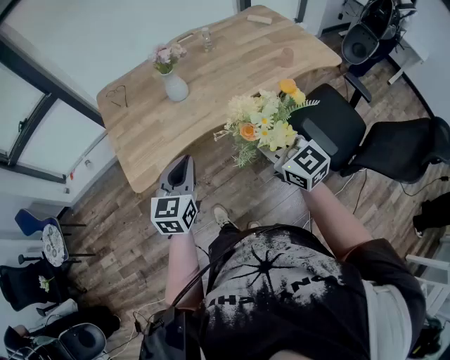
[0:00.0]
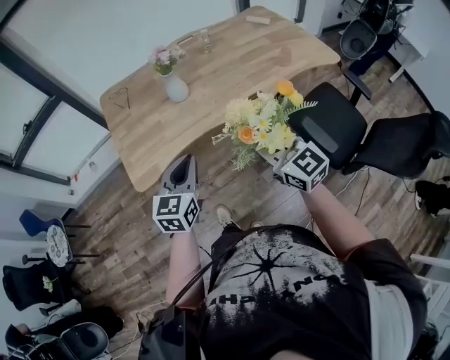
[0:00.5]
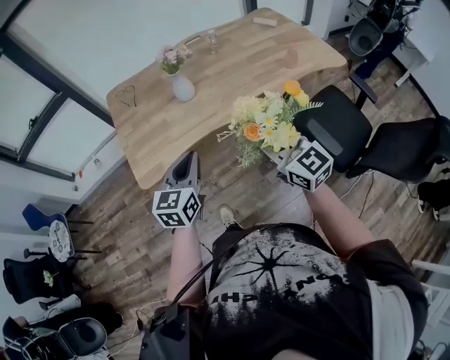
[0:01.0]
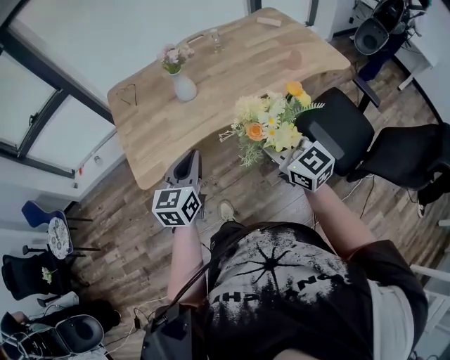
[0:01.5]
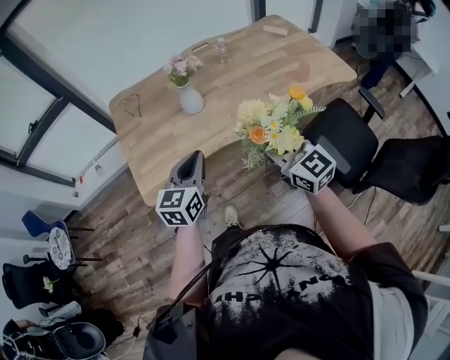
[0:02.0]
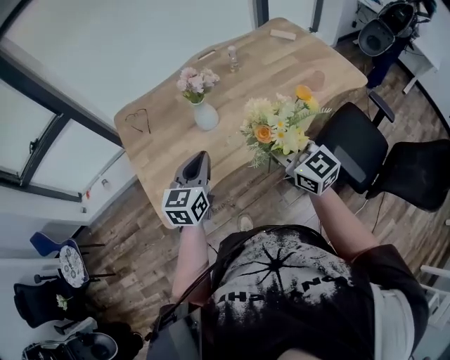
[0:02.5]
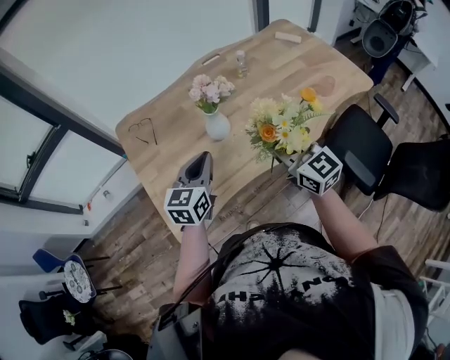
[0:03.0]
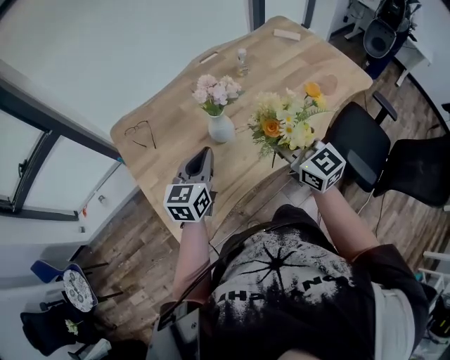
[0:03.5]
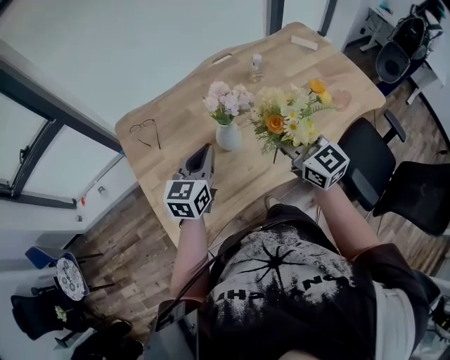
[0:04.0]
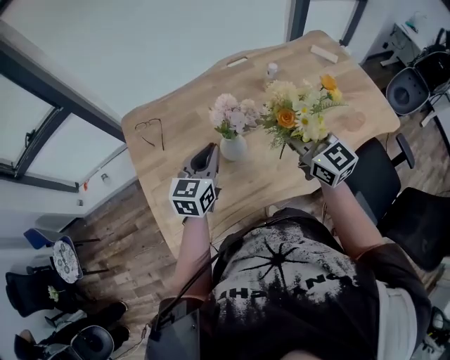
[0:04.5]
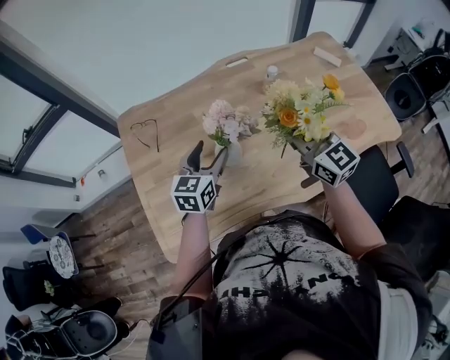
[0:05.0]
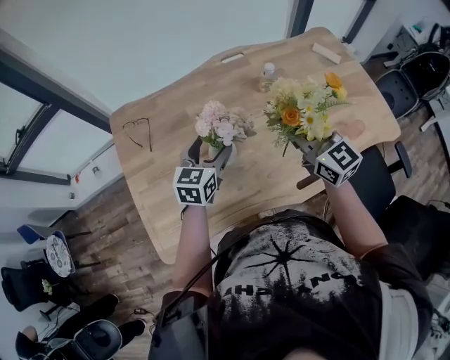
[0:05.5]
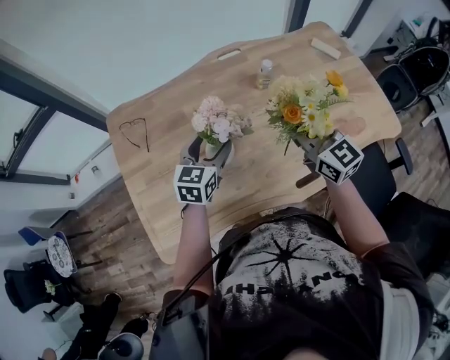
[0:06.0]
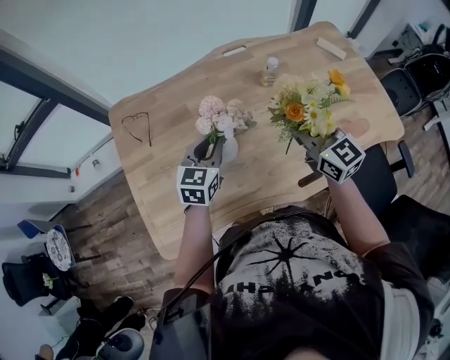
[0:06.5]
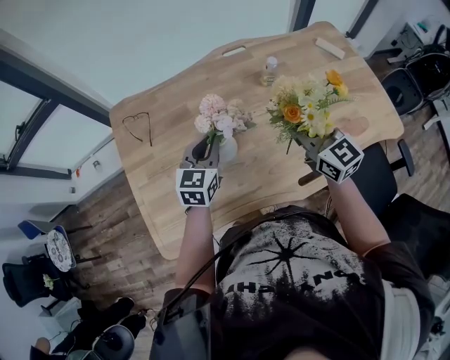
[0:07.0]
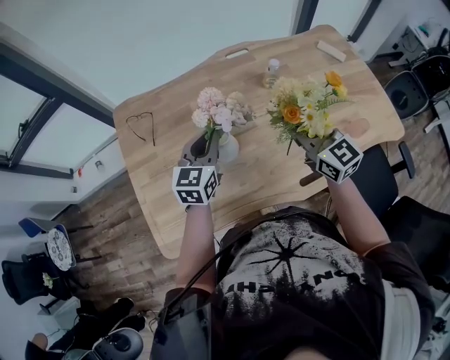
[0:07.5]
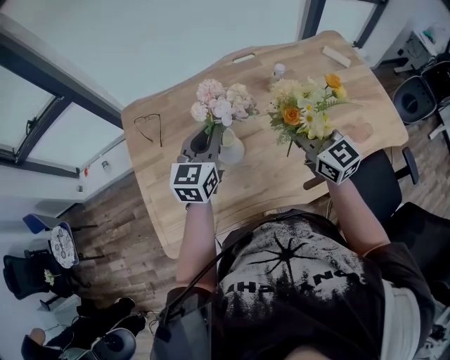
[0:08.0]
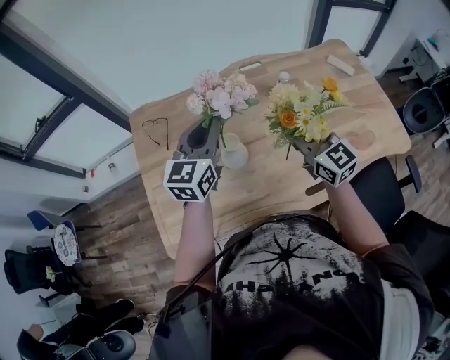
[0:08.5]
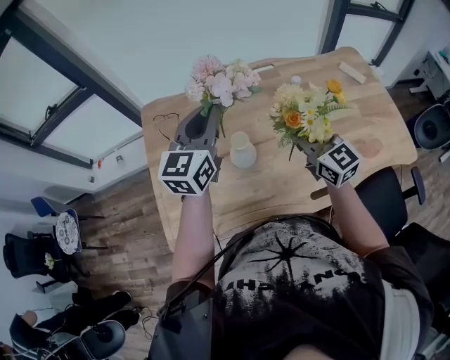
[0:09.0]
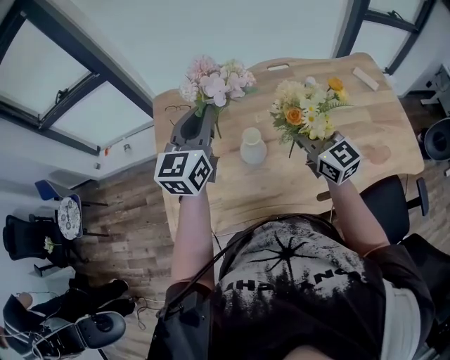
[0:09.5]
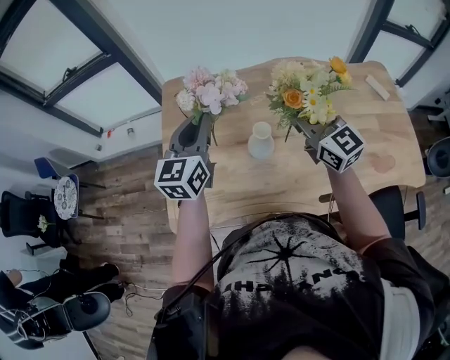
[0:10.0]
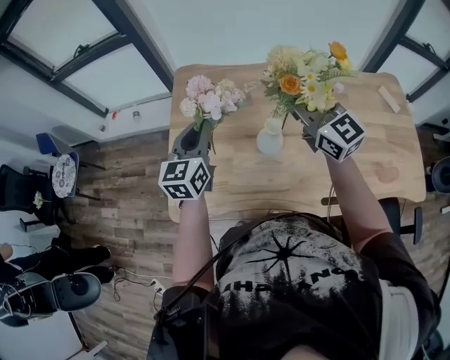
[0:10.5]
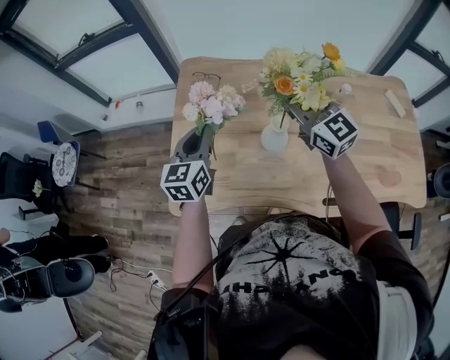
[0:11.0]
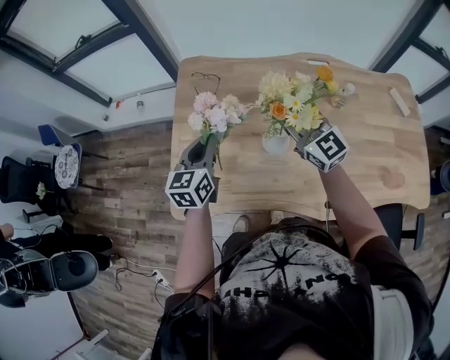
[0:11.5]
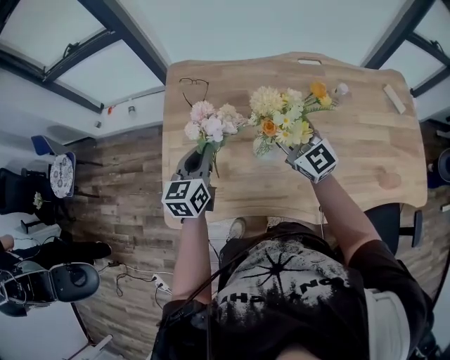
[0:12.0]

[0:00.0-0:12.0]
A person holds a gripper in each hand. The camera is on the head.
0:00.0 to 0:02.0: The two grippers go roughly 5 cm forward.
0:02.0 to 0:04.0: Both grippers move forward, roughly 25 cm.
0:04.0 to 0:06.0: The left gripper goes about 15 cm forward, to the right and downward, and opens; the right gripper goes some 15 cm forward and to the right.
0:06.0 to 0:08.0: The left gripper heads upward, covering approximately 10 cm, and closes.
0:08.0 to 0:10.0: The two grippers go about 15 cm to the left and upward.
0:10.0 to 0:12.0: The left gripper goes about 15 cm downward. Meanwhile the right gripper is displaced downward and to the left by some 10 cm.

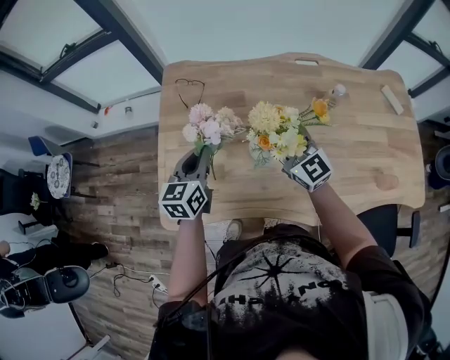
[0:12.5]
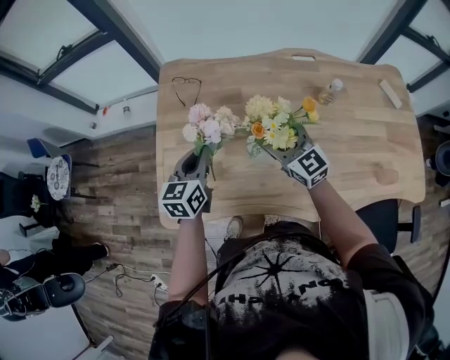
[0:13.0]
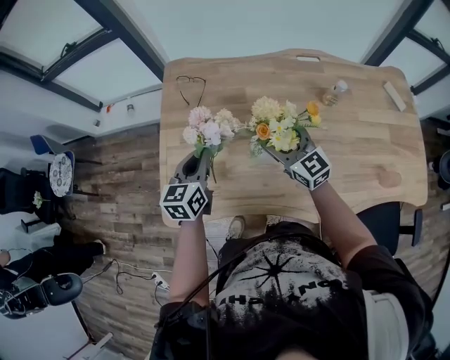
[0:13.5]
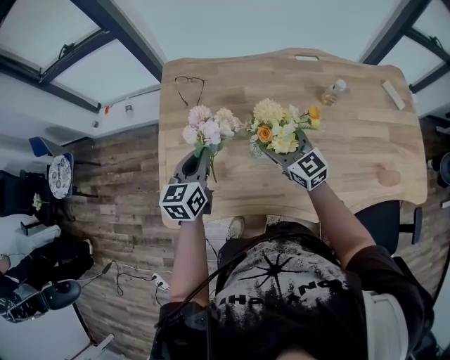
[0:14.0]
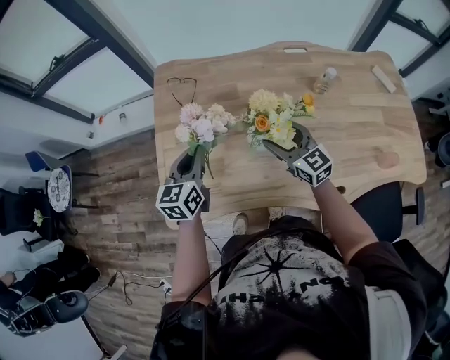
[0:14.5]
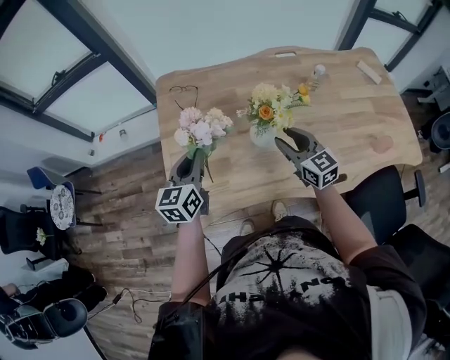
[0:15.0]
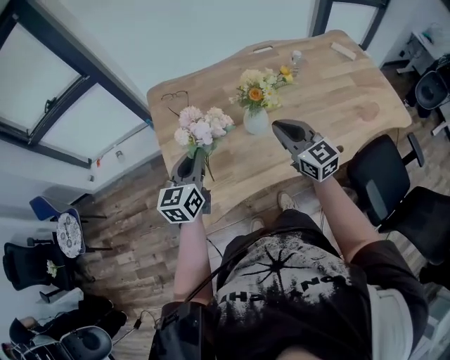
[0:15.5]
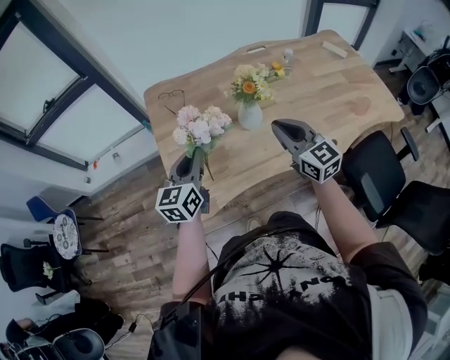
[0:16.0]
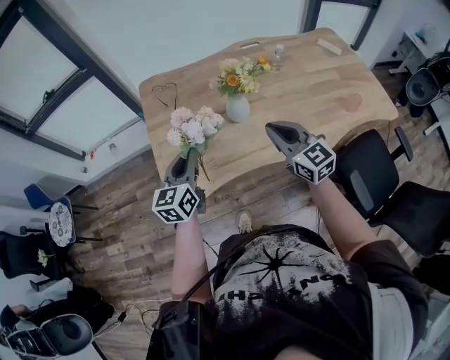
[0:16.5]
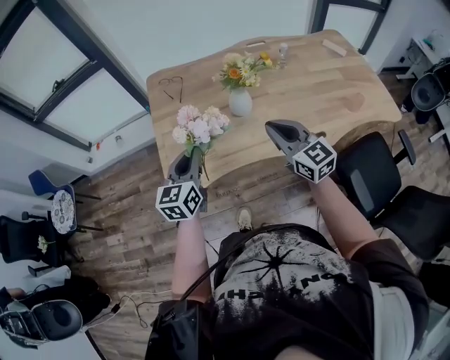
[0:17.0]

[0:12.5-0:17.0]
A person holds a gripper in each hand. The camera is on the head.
0:12.5 to 0:14.5: The right gripper heads downward, covering roughly 5 cm.
0:14.5 to 0:17.0: The right gripper heads backward and upward, covering about 25 cm, and closes up; the left gripper is displaced backward by some 20 cm.

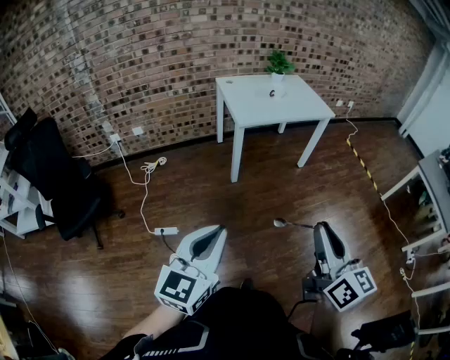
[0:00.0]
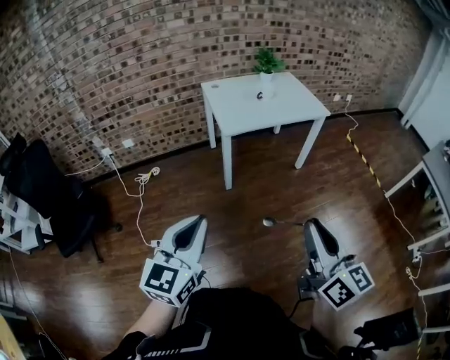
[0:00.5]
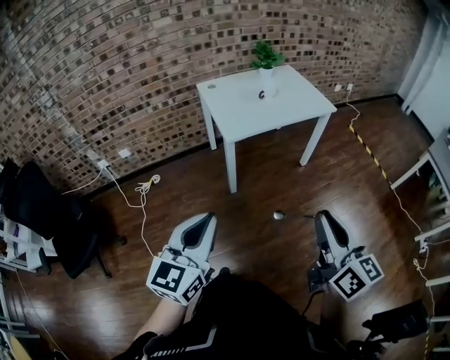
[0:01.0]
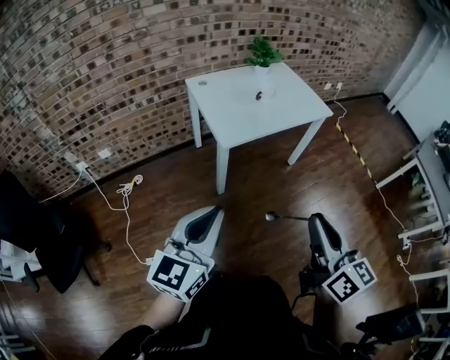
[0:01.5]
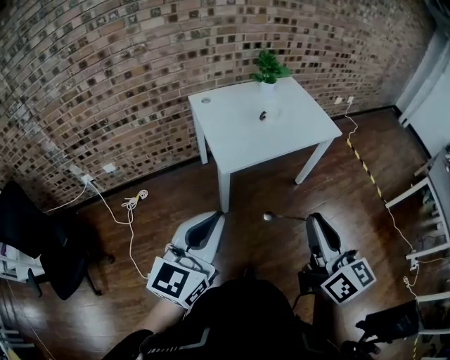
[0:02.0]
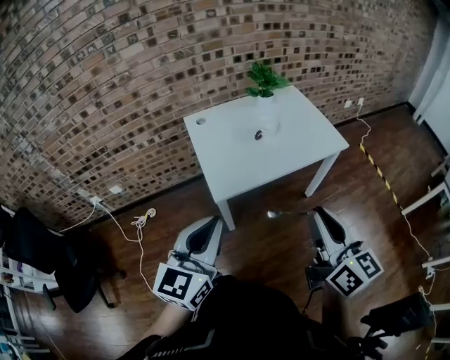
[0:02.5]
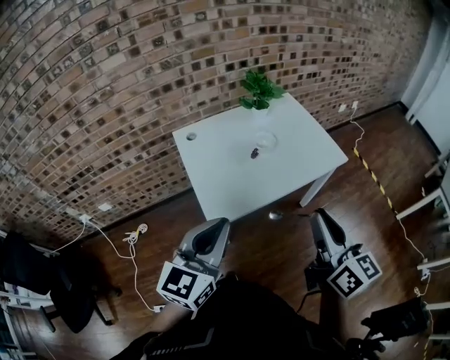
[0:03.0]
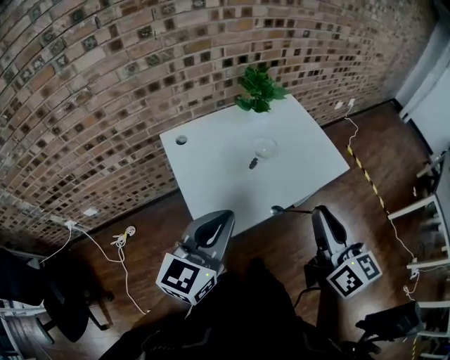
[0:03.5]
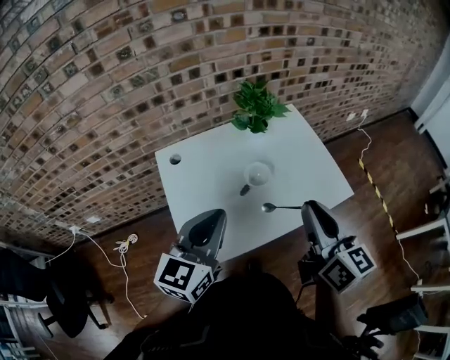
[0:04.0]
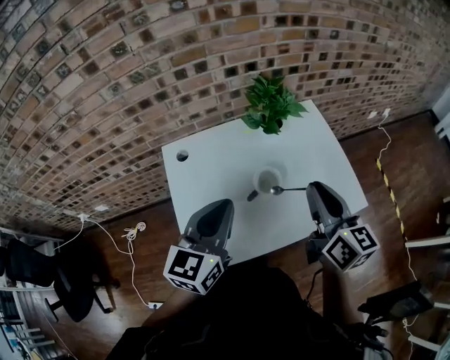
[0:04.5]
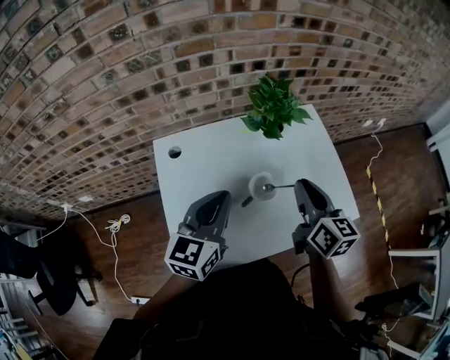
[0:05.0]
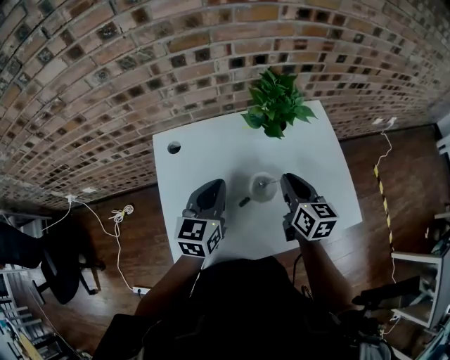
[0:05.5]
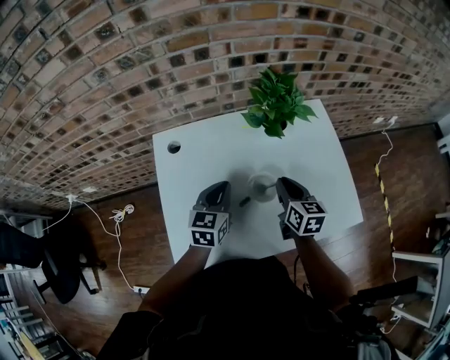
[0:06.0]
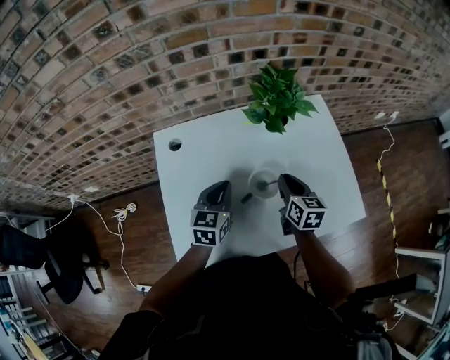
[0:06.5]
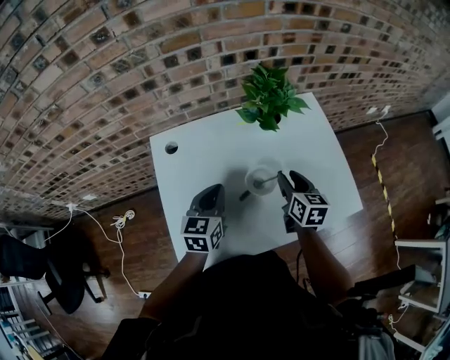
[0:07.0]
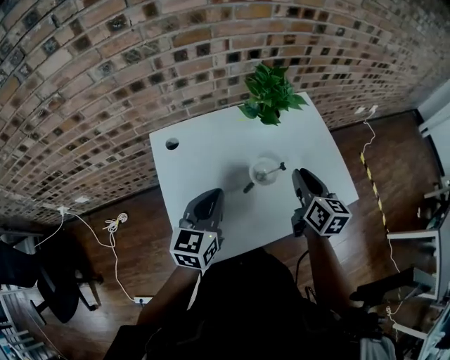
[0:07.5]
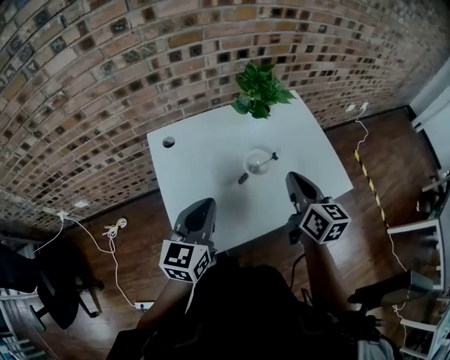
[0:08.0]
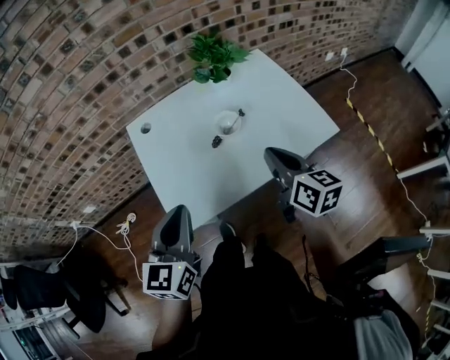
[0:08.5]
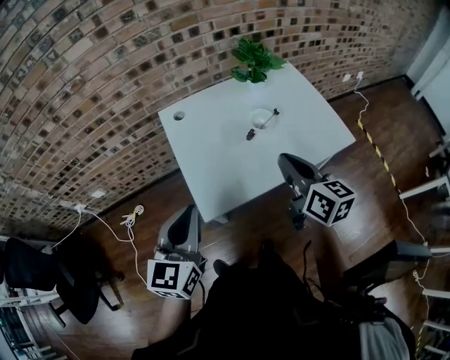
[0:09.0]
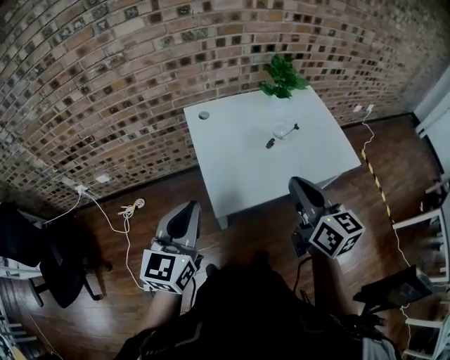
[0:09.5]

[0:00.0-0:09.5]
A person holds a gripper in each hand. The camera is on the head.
0:00.0 to 0:02.0: The two grippers go some 40 cm forward.
0:02.0 to 0:04.0: The pair of grippers is taken forward, roughly 50 cm.
0:04.0 to 0:05.5: Both grippers travel together forward and downward, some 25 cm.
0:05.5 to 0:07.5: Both grippers travel together backward, approximately 5 cm. The left gripper goes downward and returns, some 10 cm each way; the right gripper reaches roughly 10 cm downward, then returns.
0:07.5 to 0:09.5: The right gripper goes about 35 cm backward, to the left and upward, and closes its fingers. The left gripper is displaced backward and to the left by about 30 cm.

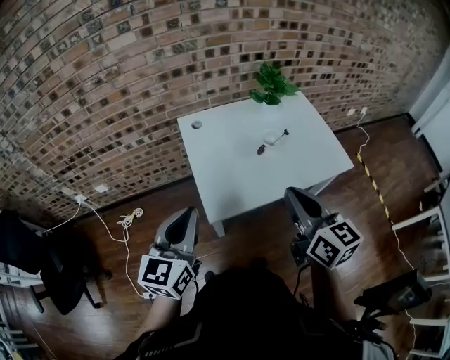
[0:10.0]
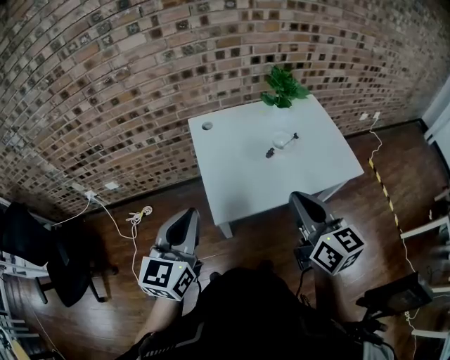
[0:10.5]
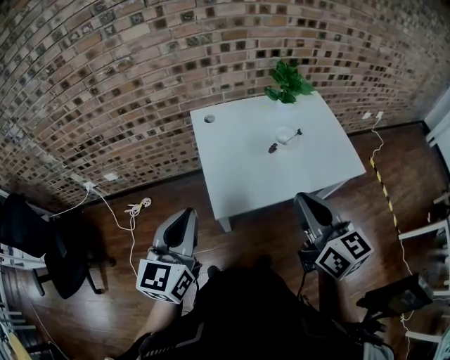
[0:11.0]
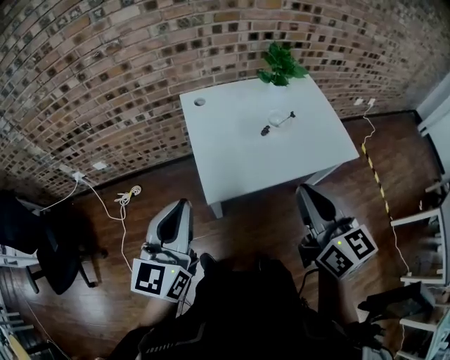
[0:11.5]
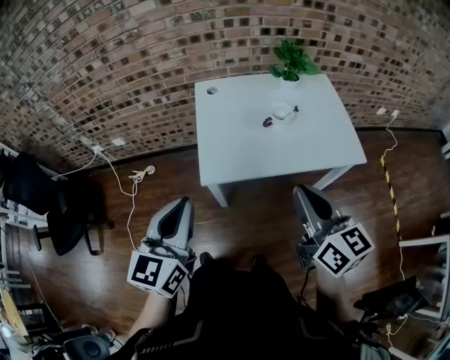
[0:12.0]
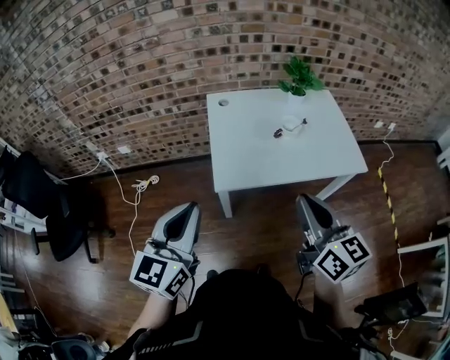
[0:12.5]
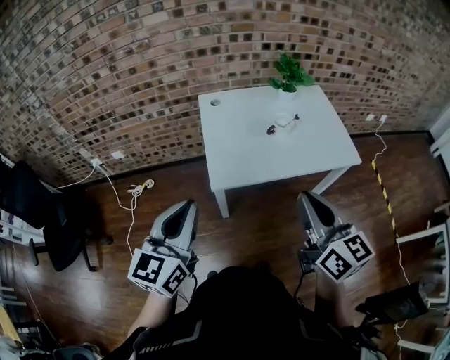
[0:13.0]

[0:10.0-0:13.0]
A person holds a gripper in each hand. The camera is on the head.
0:10.0 to 0:11.5: The grippers stay close to where they were, moving slightly.
0:11.5 to 0:13.0: Both grippers move backward, roughly 10 cm.
